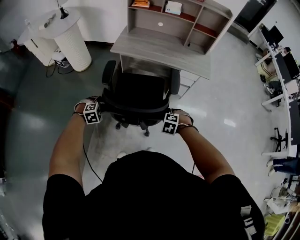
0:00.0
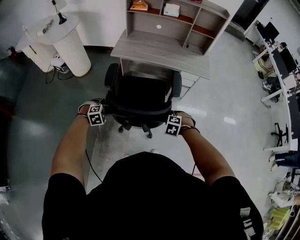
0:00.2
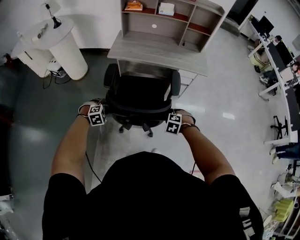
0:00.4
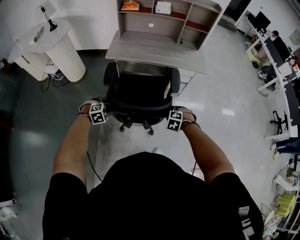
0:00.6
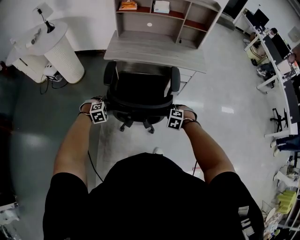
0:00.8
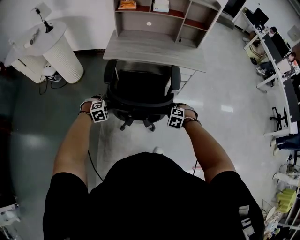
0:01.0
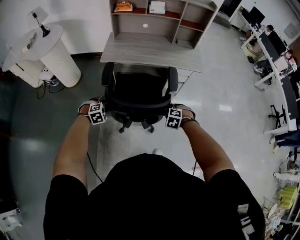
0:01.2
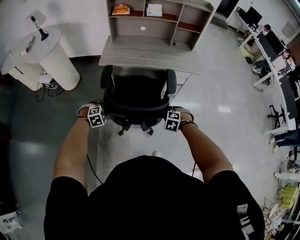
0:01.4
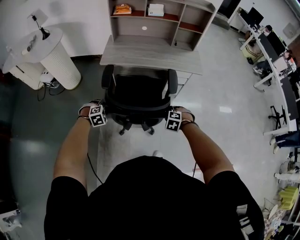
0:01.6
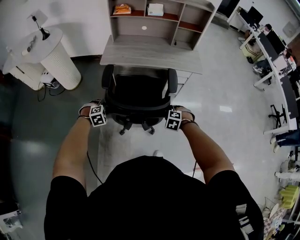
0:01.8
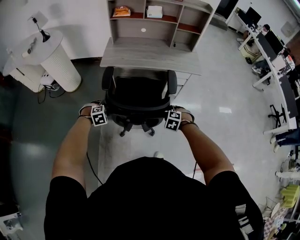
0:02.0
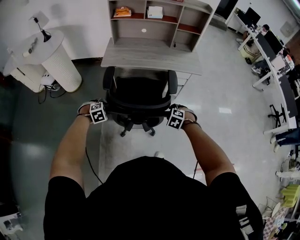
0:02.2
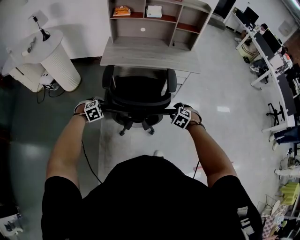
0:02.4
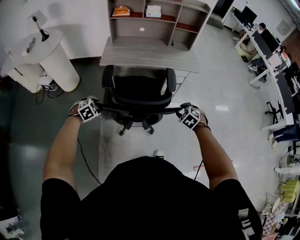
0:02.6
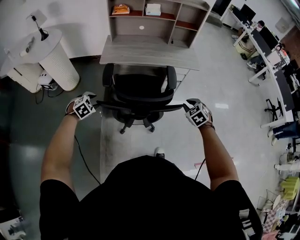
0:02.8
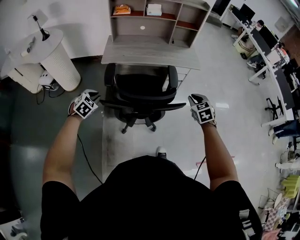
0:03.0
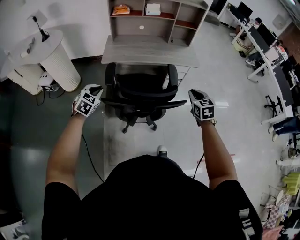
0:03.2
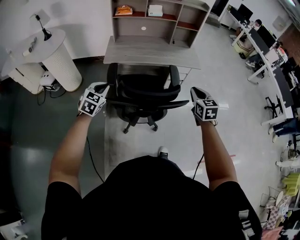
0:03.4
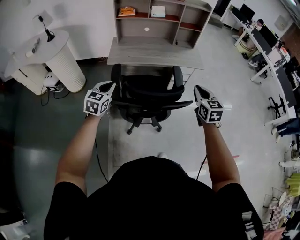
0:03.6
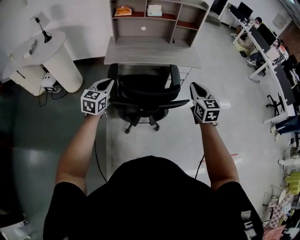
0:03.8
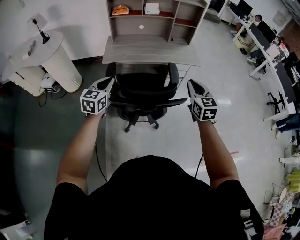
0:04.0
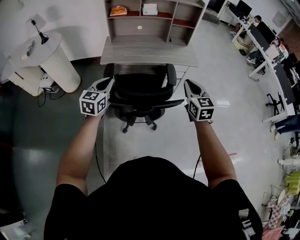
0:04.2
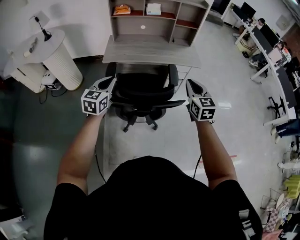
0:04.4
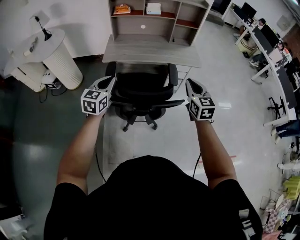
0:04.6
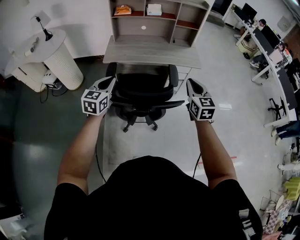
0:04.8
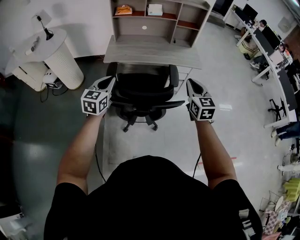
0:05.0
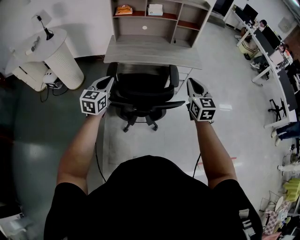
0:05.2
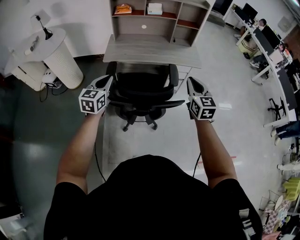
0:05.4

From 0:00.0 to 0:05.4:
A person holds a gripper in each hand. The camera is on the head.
From 0:00.0 to 0:01.4: The left gripper changes place by about 10 cm; the right gripper changes place by approximately 5 cm.
From 0:01.4 to 0:02.8: The right gripper heads upward and to the right, covering some 15 cm, and turns by about 40 degrees; the left gripper goes roughly 10 cm to the left and upward.
From 0:02.8 to 0:04.0: The right gripper goes some 15 cm upward, and tips its fingers upward by some 40 degrees; the left gripper travels upward and to the right by approximately 20 cm, tilts its fingers approximately 40 degrees upward, and closes.
From 0:04.0 to 0:05.4: The grippers make only small movements.

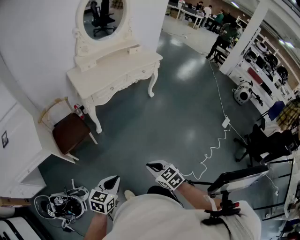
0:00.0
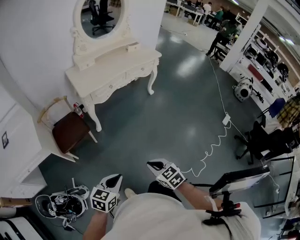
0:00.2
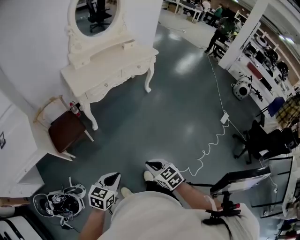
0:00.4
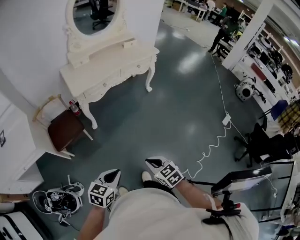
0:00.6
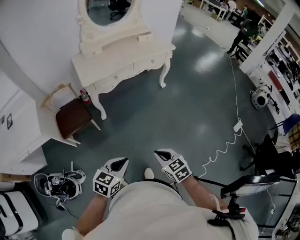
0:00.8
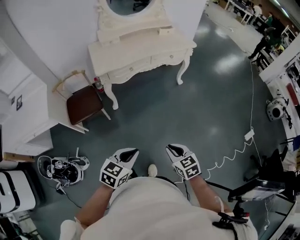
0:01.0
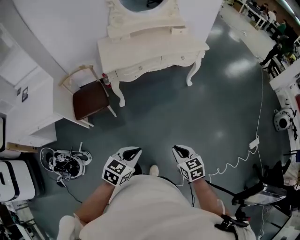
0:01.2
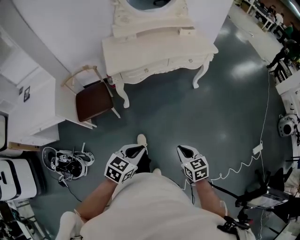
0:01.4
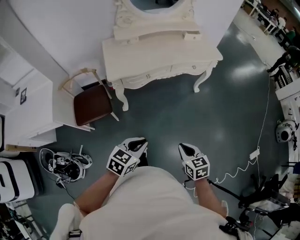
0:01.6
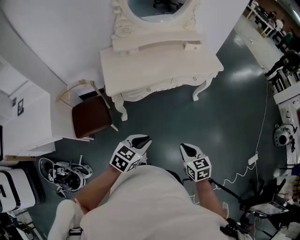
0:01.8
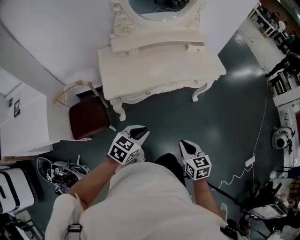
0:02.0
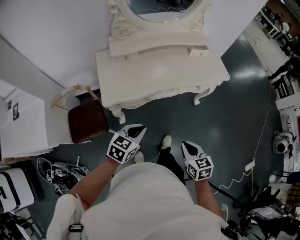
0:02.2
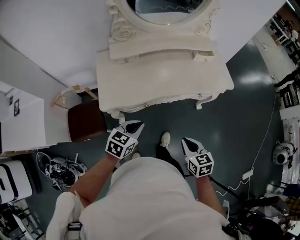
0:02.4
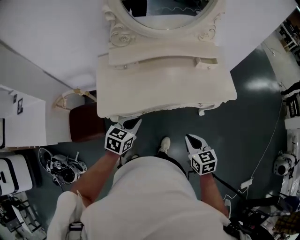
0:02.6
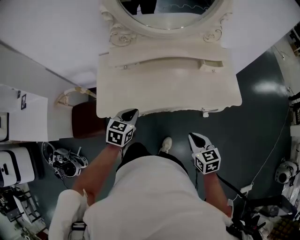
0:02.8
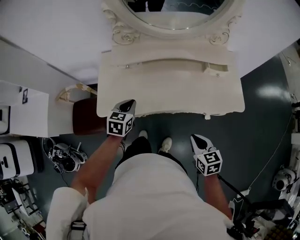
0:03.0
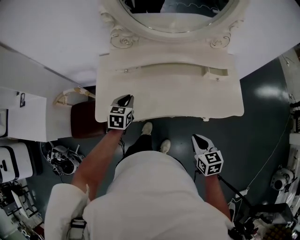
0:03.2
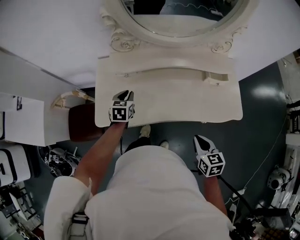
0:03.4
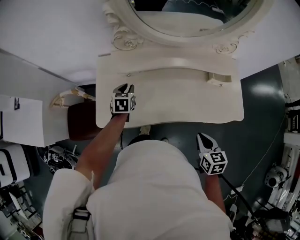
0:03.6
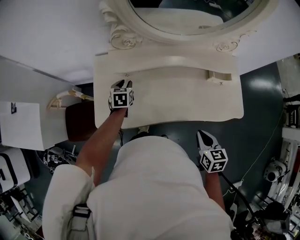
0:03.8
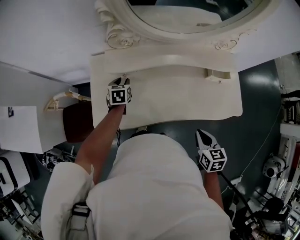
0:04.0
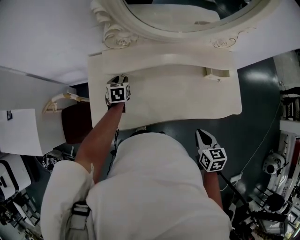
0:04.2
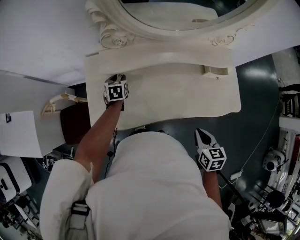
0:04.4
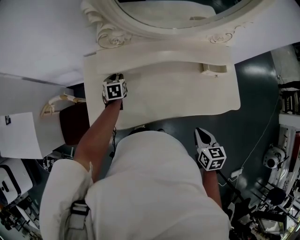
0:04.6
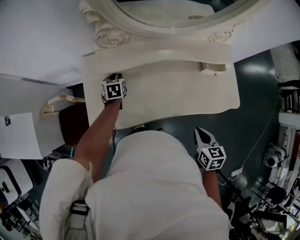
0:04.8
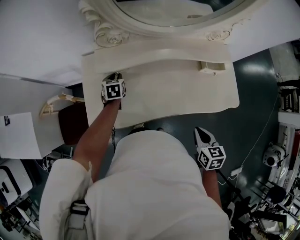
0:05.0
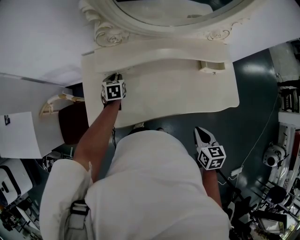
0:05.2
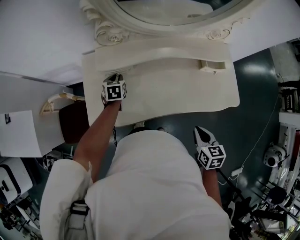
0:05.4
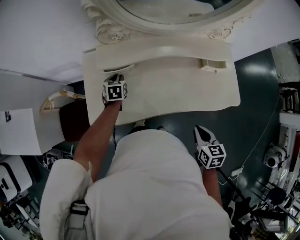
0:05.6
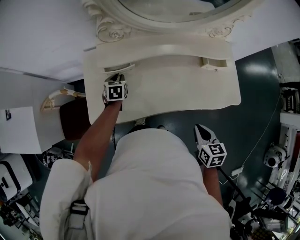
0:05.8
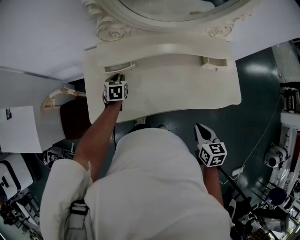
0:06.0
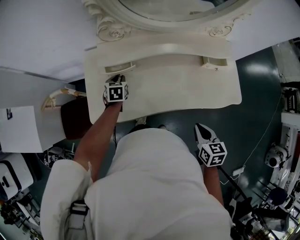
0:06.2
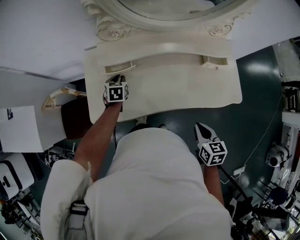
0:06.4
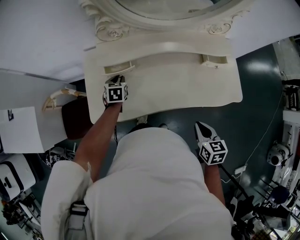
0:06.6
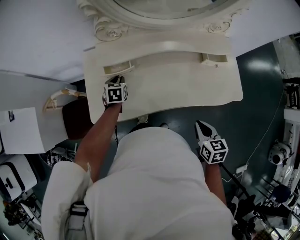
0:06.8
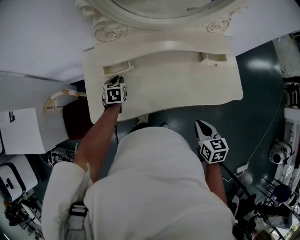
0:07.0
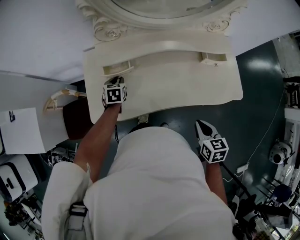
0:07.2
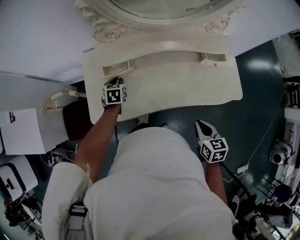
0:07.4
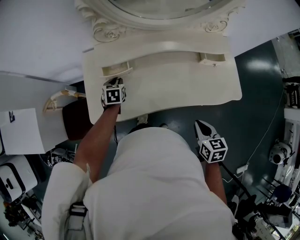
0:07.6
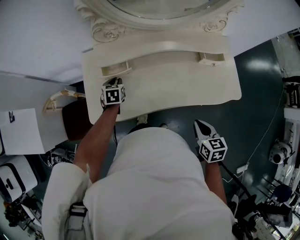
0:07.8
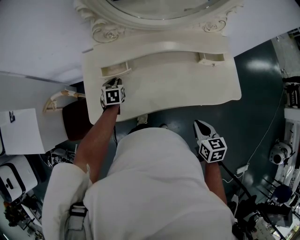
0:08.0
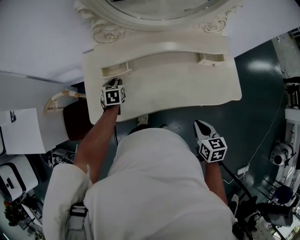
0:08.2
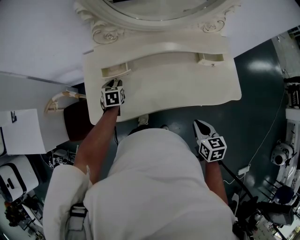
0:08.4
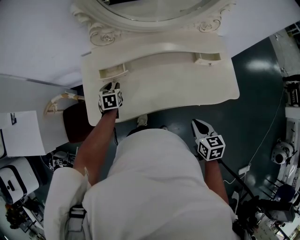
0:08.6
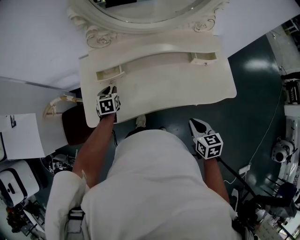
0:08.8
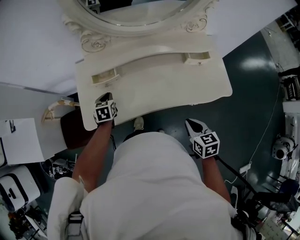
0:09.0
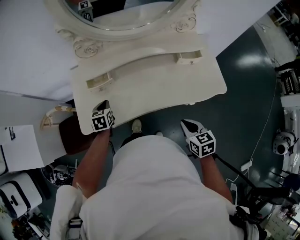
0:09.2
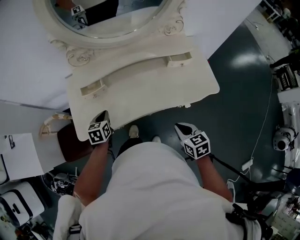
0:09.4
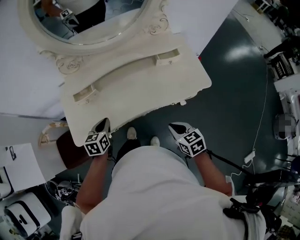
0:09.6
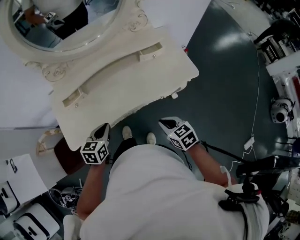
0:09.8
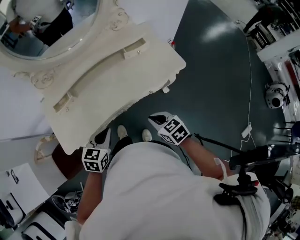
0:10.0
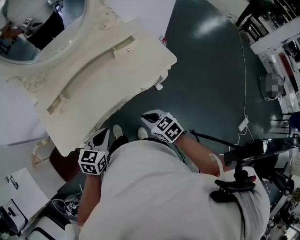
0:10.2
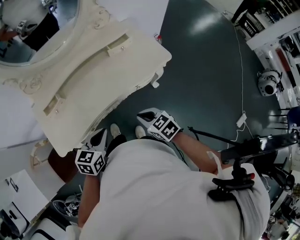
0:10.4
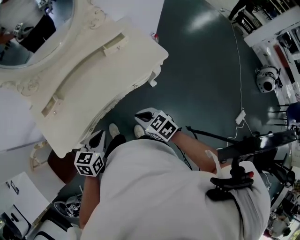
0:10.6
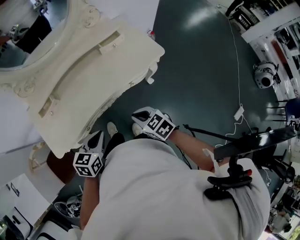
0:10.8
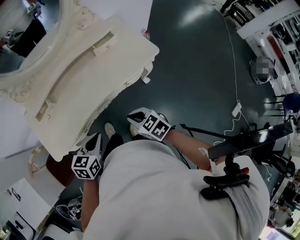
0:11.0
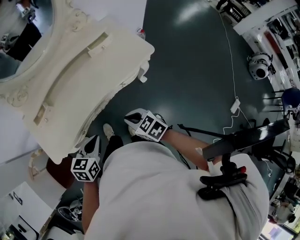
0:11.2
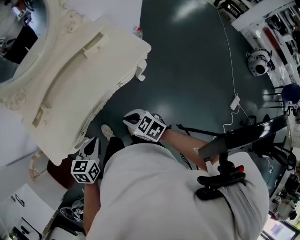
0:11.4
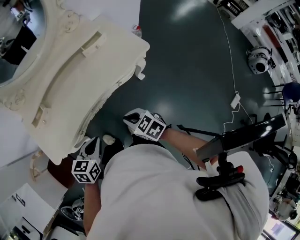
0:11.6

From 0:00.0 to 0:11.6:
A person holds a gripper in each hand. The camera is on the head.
From 0:00.0 to 0:01.4: Both grippers travel together forward and to the right, some 30 cm.
From 0:01.4 to 0:02.8: The two grippers travel together, forward, roughly 60 cm. The left gripper changes its angle by about 30 degrees.
From 0:02.8 to 0:04.4: The right gripper goes roughly 15 cm forward; the left gripper is displaced forward and downward by approximately 35 cm, rotates approximately 20 degrees, and opens up.
From 0:04.4 to 0:05.8: The grippers make only small movements.
From 0:05.8 to 0:07.2: The grippers stay close to where they were, moving slightly.
From 0:07.2 to 0:08.8: The grippers stay close to where they were, moving slightly.
From 0:08.8 to 0:10.2: The left gripper shifts roughly 35 cm backward, to the right and upward, rotates some 50 degrees, and closes its fingers. Meanwhile the right gripper travels backward by roughly 10 cm.
From 0:10.2 to 0:11.6: The left gripper changes place by about 5 cm.

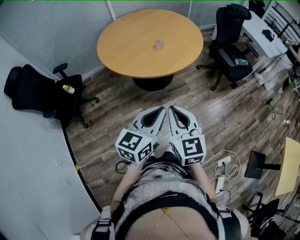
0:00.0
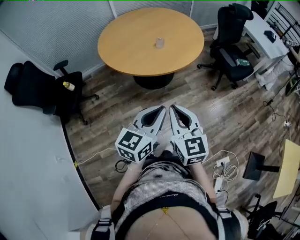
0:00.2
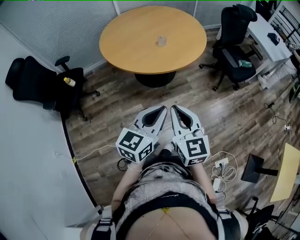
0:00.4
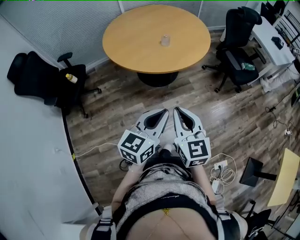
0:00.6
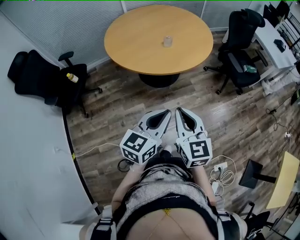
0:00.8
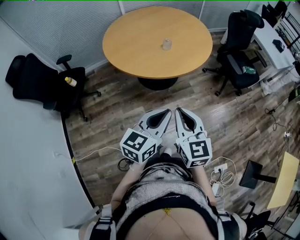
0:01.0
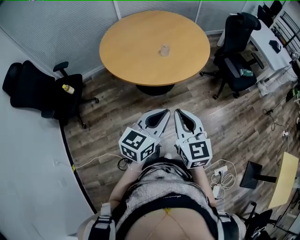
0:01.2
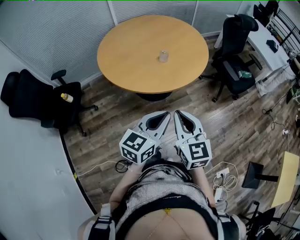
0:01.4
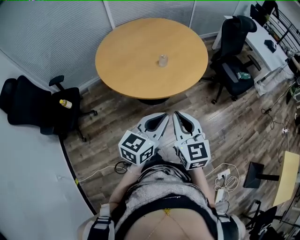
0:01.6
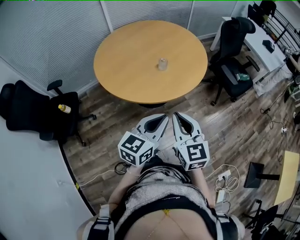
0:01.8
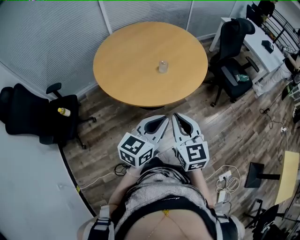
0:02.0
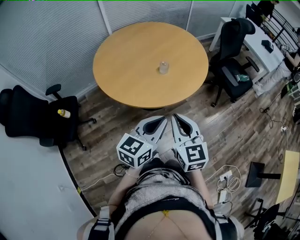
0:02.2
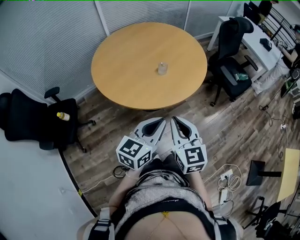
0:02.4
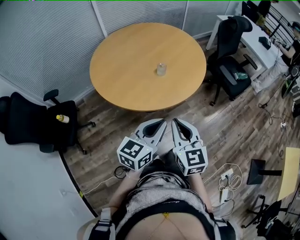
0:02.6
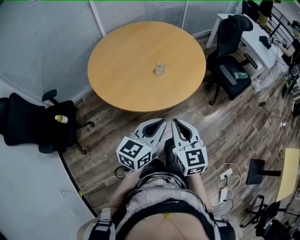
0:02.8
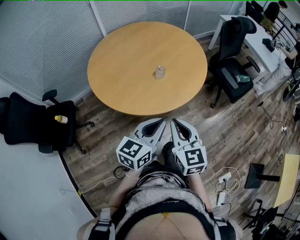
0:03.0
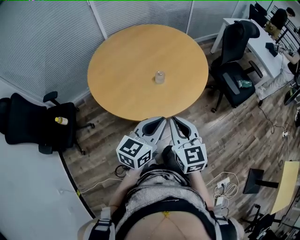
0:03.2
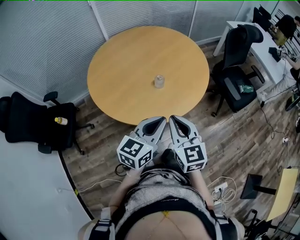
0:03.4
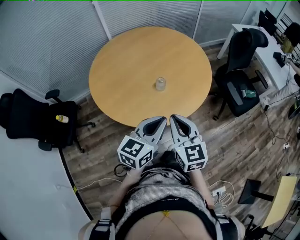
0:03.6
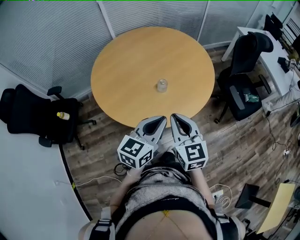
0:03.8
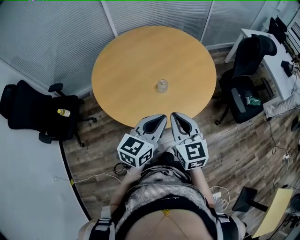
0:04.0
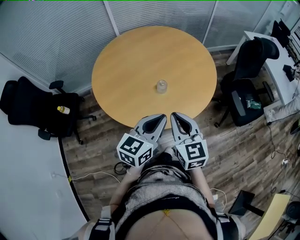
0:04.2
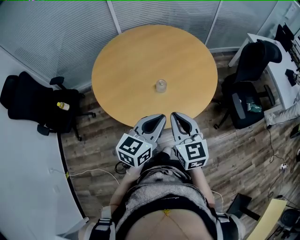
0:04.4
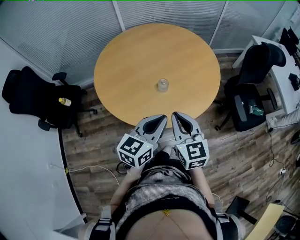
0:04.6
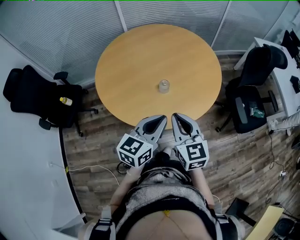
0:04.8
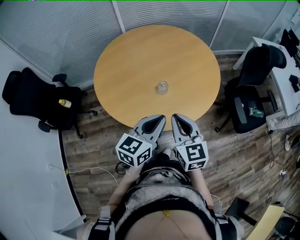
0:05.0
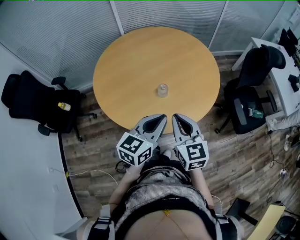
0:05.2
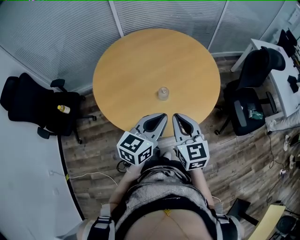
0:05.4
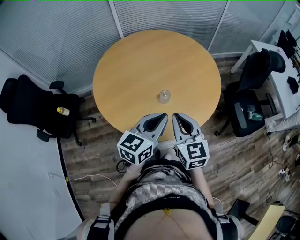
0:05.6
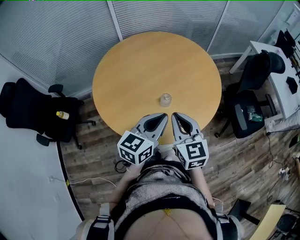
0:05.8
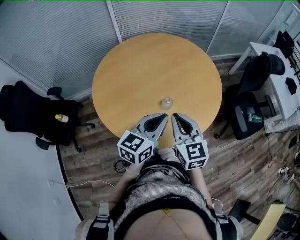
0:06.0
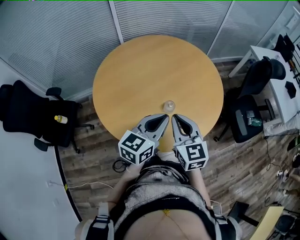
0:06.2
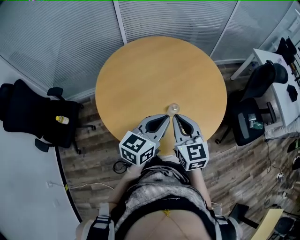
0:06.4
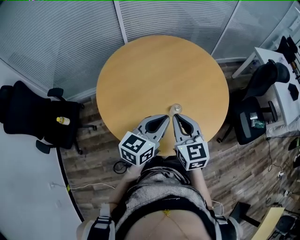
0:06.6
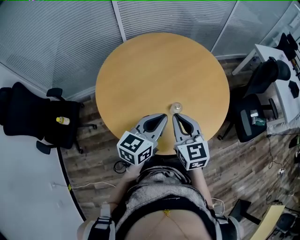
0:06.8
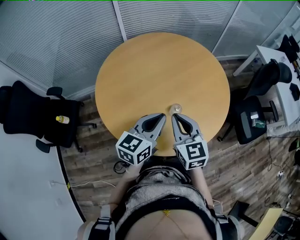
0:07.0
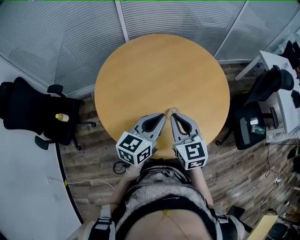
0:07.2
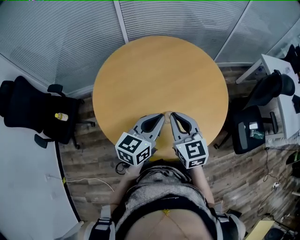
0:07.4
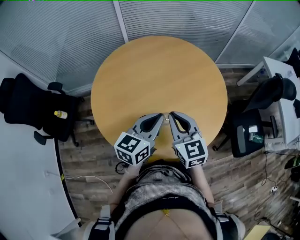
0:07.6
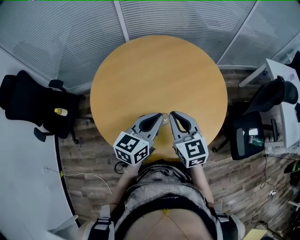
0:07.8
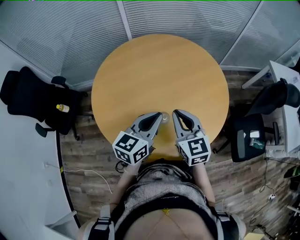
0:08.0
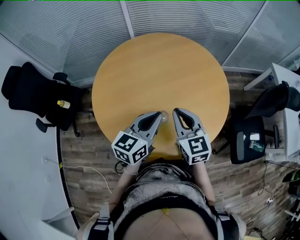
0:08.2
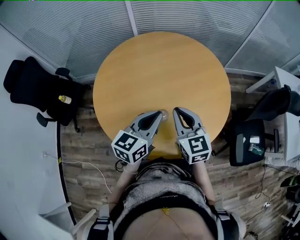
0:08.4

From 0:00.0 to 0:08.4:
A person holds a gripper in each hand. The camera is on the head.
From 0:00.0 to 0:01.4: Both grippers move forward, about 10 cm.
From 0:01.4 to 0:02.8: The right gripper is displaced forward by about 10 cm; the left gripper heads forward and to the left, covering approximately 10 cm.
From 0:02.8 to 0:04.2: Both grippers travel together forward, some 20 cm.
From 0:04.2 to 0:05.6: Both grippers move forward, some 5 cm.
From 0:05.6 to 0:07.0: Both grippers travel together to the left and forward, some 15 cm.
From 0:07.0 to 0:08.4: Both grippers move to the right and forward, about 10 cm.
